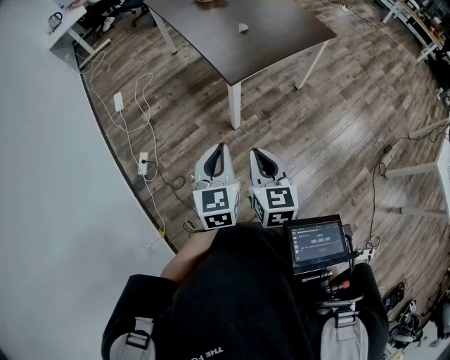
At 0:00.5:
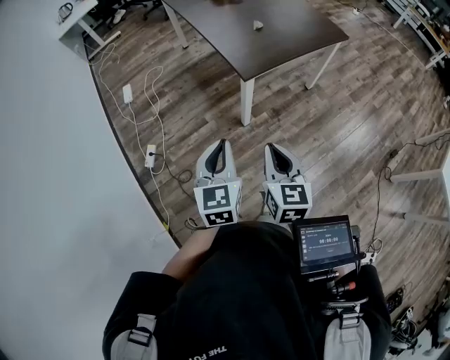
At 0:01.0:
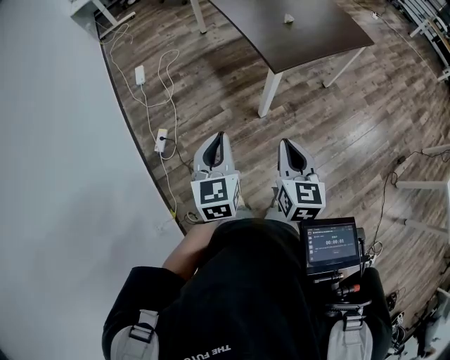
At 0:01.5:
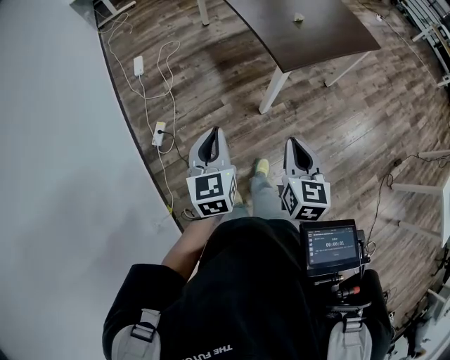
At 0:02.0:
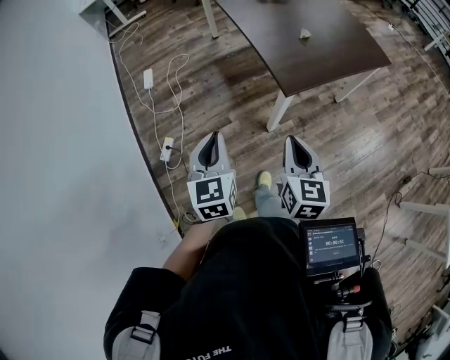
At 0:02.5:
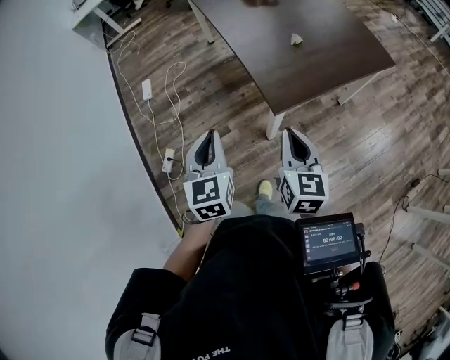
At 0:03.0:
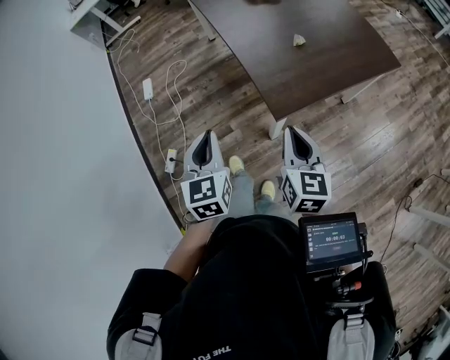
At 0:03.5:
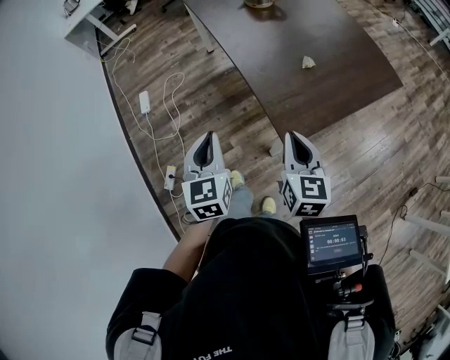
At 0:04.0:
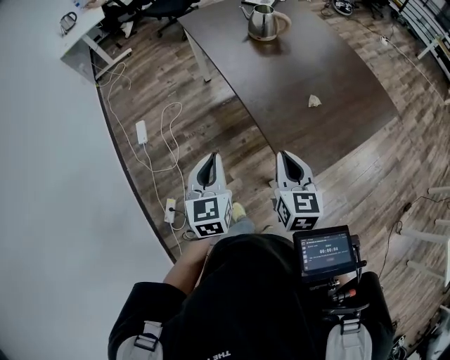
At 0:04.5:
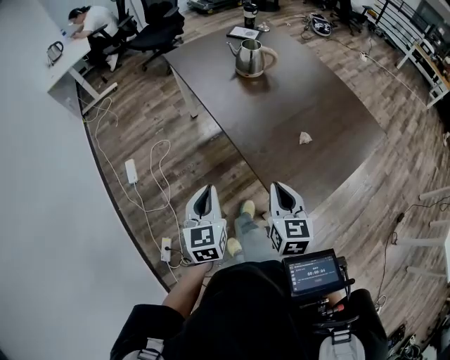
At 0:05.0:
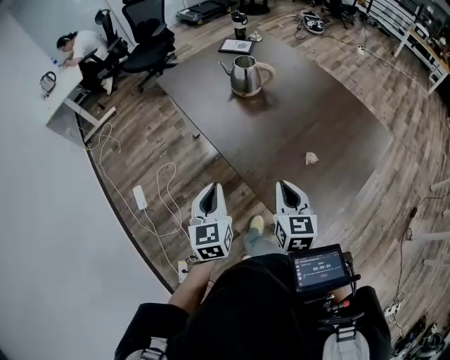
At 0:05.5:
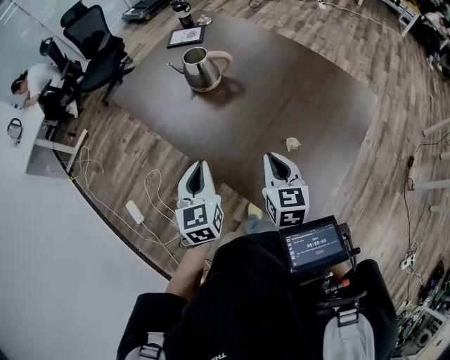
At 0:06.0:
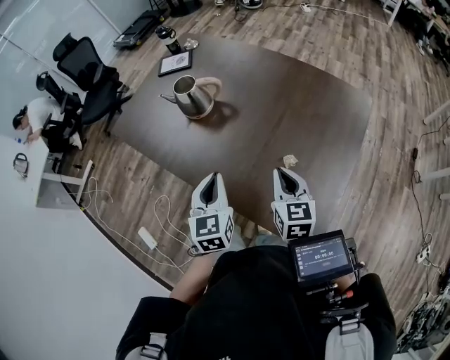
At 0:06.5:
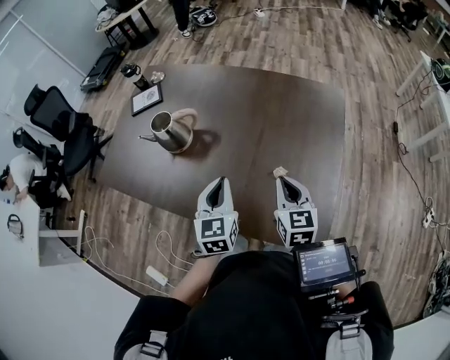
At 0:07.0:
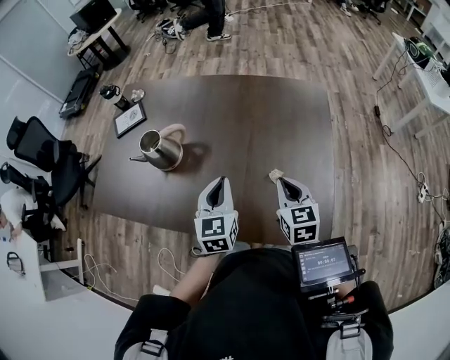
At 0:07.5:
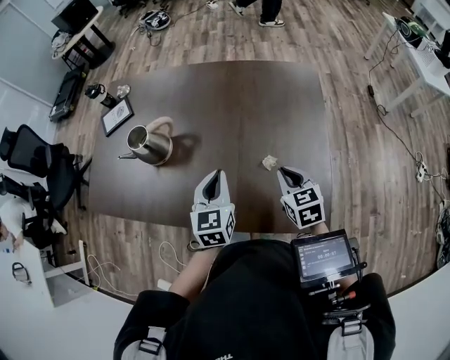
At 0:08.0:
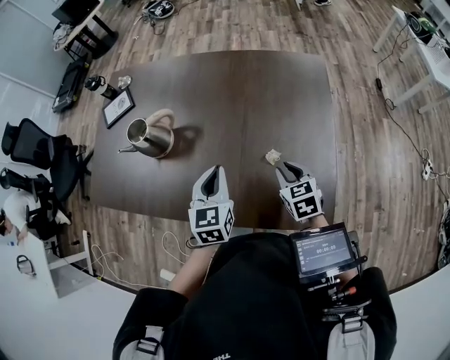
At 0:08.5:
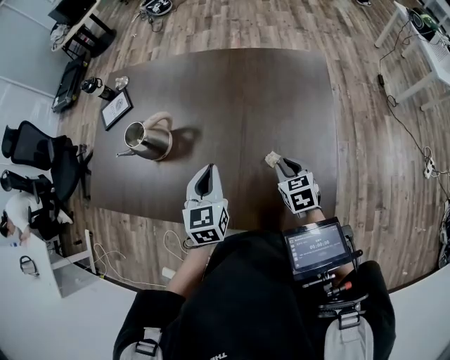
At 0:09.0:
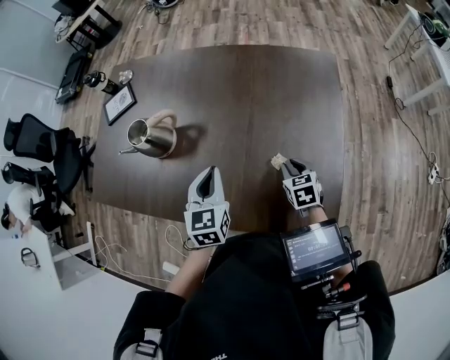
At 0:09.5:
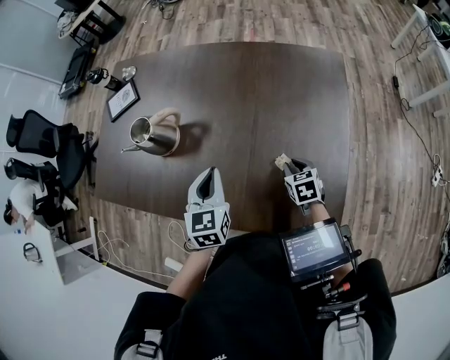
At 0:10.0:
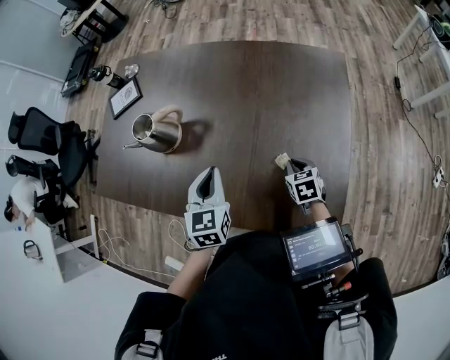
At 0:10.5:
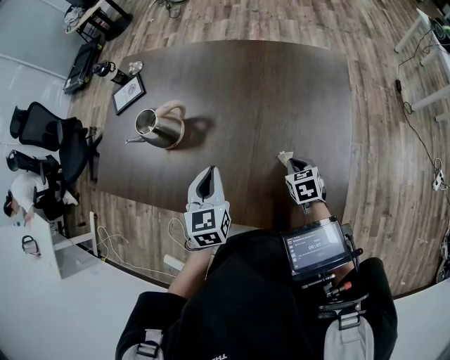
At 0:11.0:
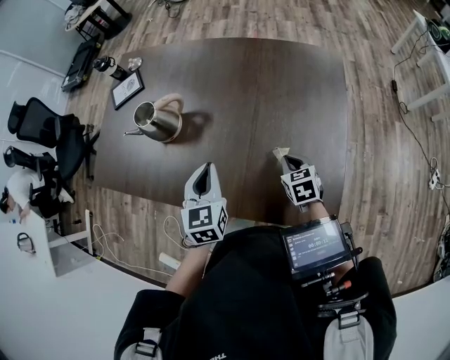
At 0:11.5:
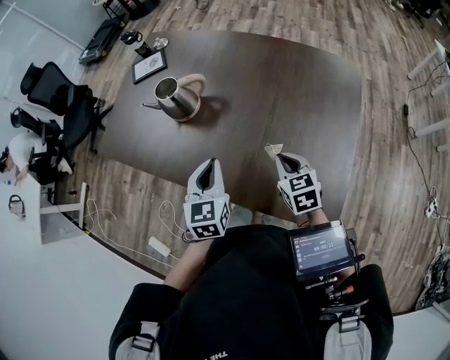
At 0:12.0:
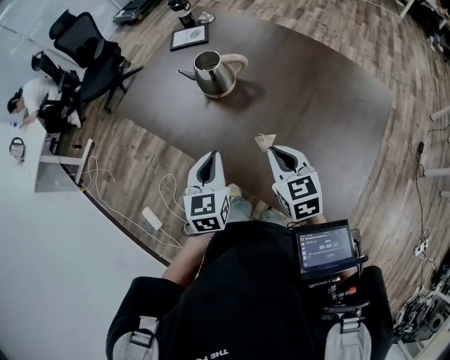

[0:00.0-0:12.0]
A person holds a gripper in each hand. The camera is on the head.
0:00.0 to 0:02.0: The left gripper is displaced to the left and forward by roughly 20 cm. The right gripper goes approximately 15 cm forward and to the left.
0:02.0 to 0:04.0: The grippers both shift forward by approximately 35 cm.
0:04.0 to 0:06.0: The left gripper shifts by approximately 35 cm, and turns by about 30 degrees. Meanwhile the right gripper ends up approximately 30 cm from where it was, and rotates approximately 30 degrees.
0:06.0 to 0:08.0: The left gripper shifts about 10 cm forward, and turns by about 30 degrees, while the right gripper travels downward and to the right by some 10 cm, changes its angle by some 20 degrees, and opens its fingers.
0:08.0 to 0:10.0: The right gripper is displaced downward by roughly 10 cm.
0:10.0 to 0:12.0: The left gripper moves to the left and backward, about 15 cm, and swivels roughly 20 degrees, while the right gripper heads to the left and upward, covering some 30 cm, and swivels approximately 40 degrees.

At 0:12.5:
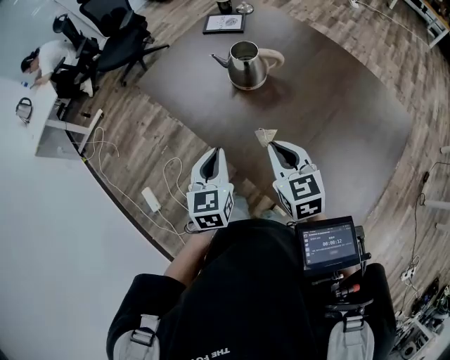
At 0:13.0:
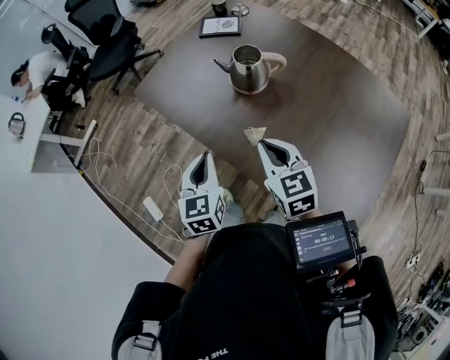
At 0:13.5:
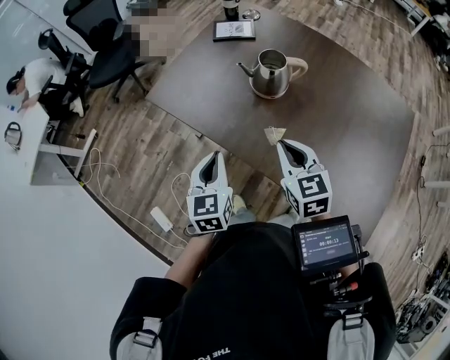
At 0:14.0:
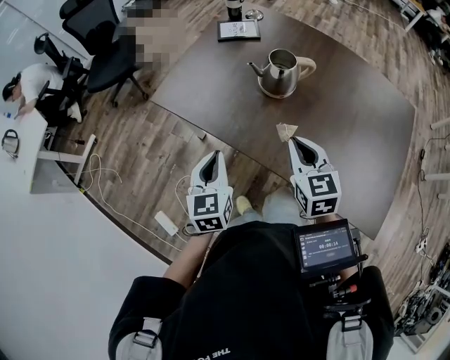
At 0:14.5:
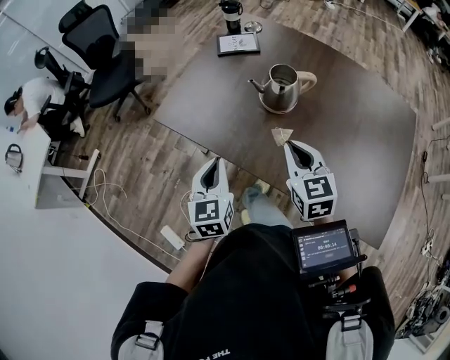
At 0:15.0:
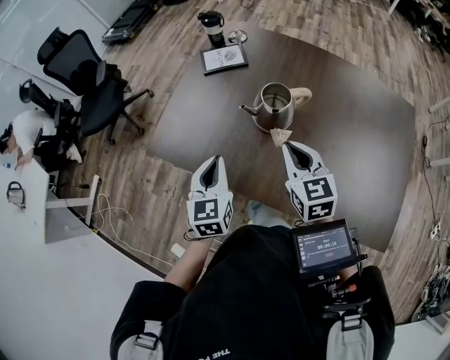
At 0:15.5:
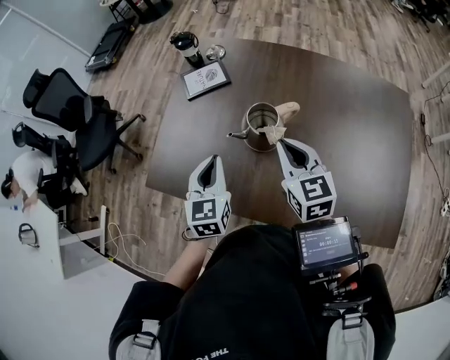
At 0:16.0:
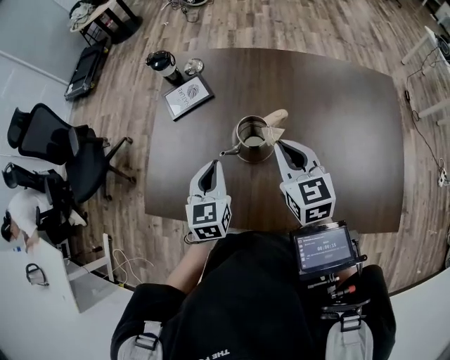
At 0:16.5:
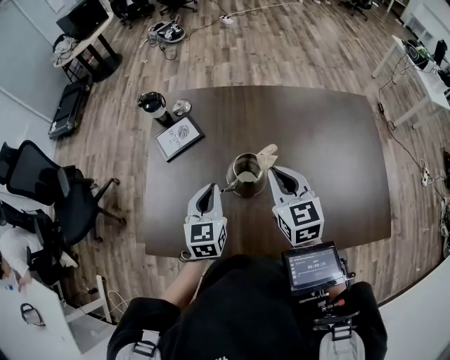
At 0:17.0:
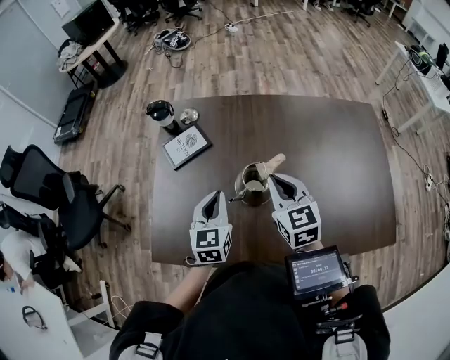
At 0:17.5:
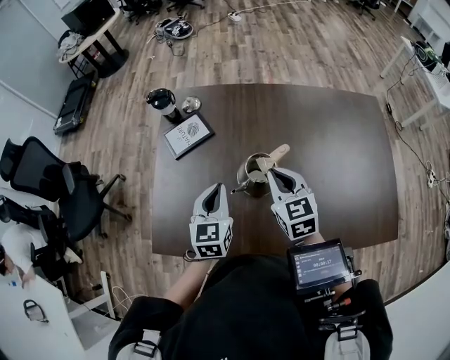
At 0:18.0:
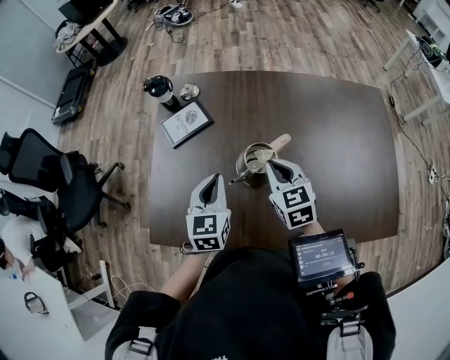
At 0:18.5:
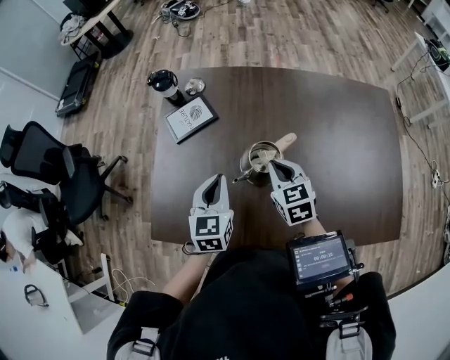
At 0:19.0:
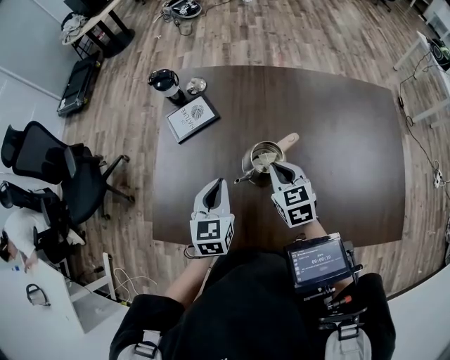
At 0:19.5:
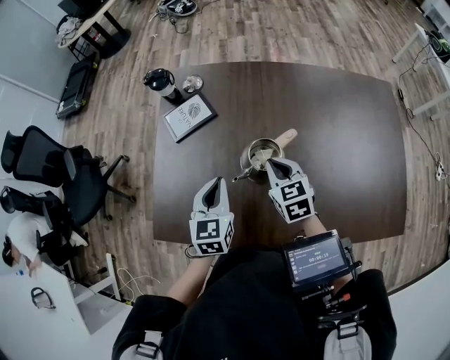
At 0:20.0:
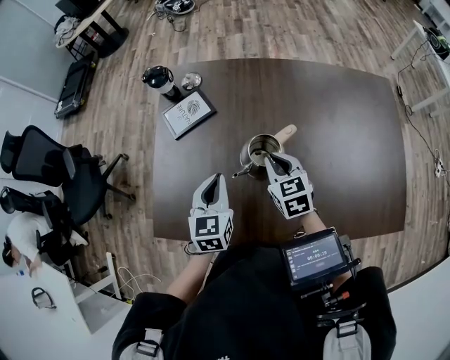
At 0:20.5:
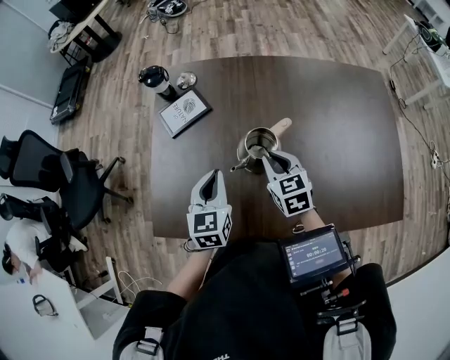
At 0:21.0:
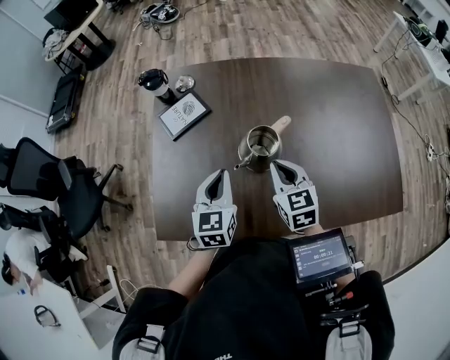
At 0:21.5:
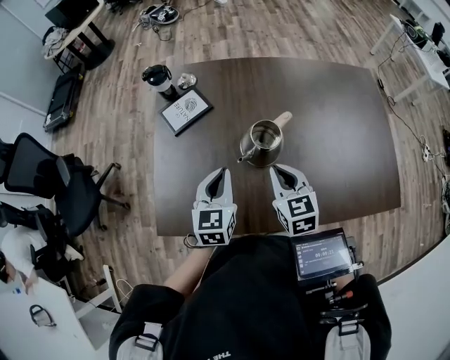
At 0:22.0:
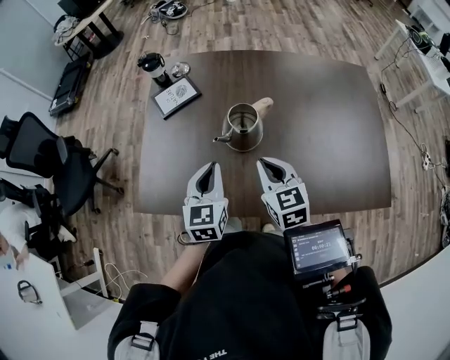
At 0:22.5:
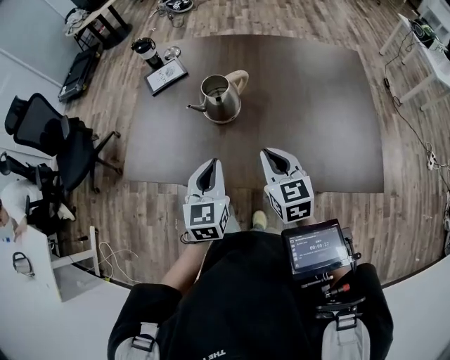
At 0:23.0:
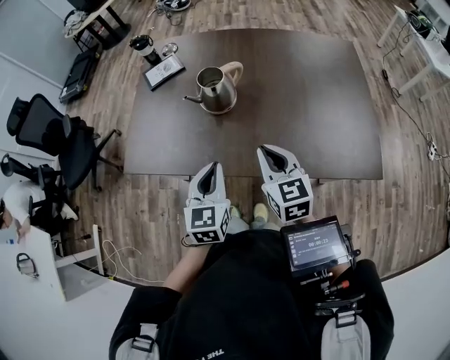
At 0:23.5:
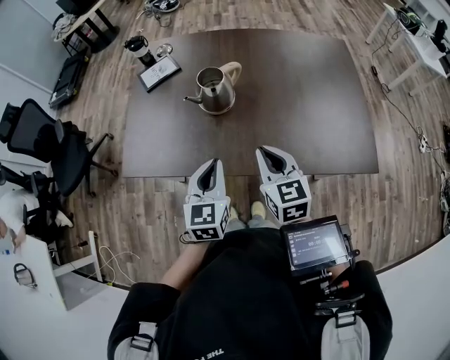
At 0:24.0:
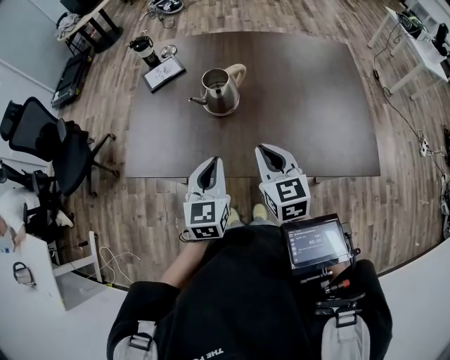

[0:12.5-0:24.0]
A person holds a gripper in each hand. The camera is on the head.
0:12.5 to 0:14.5: Both grippers move to the left and forward, about 20 cm.
0:14.5 to 0:16.5: The left gripper shifts by some 30 cm, and turns by roughly 30 degrees. The right gripper moves roughly 20 cm, and turns by approximately 30 degrees.
0:16.5 to 0:18.5: The right gripper moves downward, approximately 10 cm.
0:18.5 to 0:20.0: The grippers make only small movements.
0:20.0 to 0:22.0: Both grippers travel together backward, approximately 10 cm.
0:22.0 to 0:24.0: The grippers both shift backward and to the right by approximately 15 cm.

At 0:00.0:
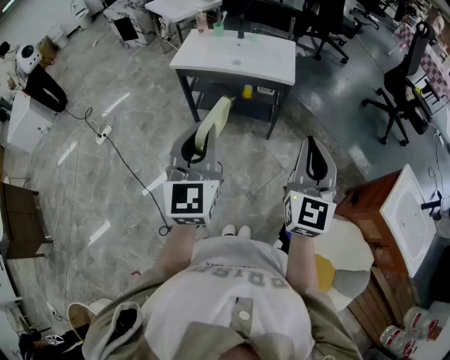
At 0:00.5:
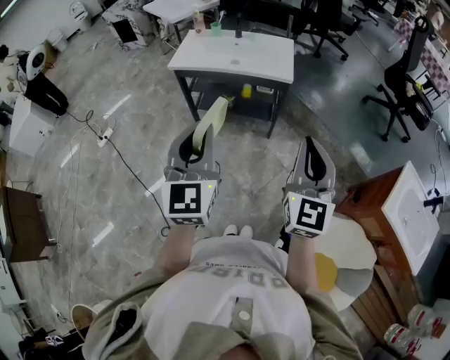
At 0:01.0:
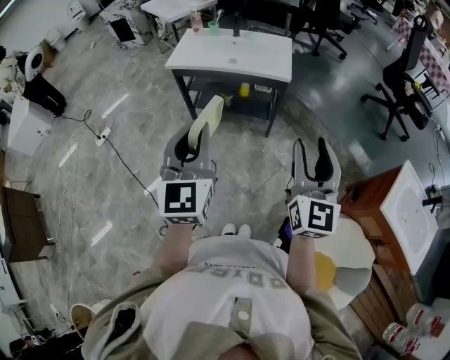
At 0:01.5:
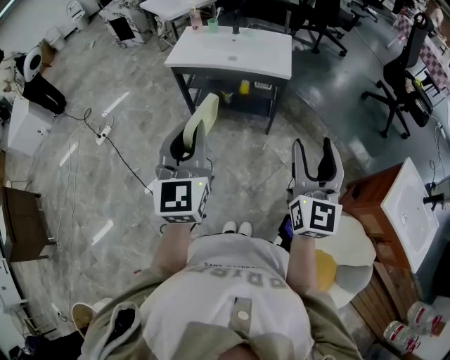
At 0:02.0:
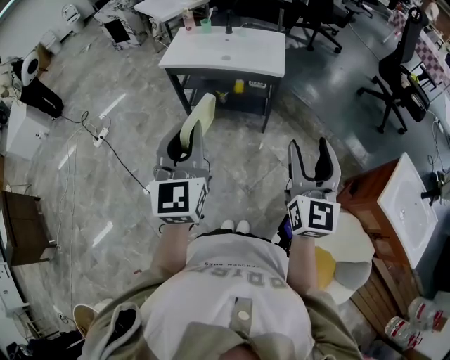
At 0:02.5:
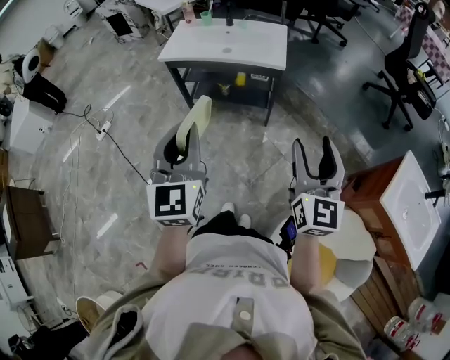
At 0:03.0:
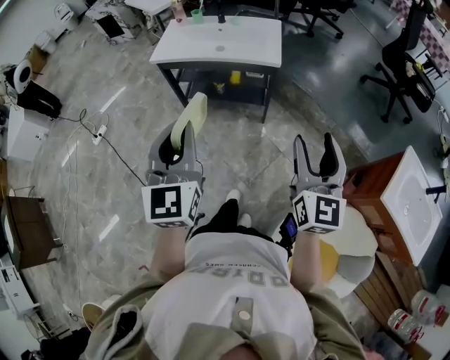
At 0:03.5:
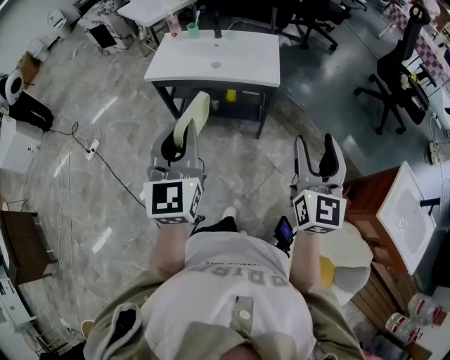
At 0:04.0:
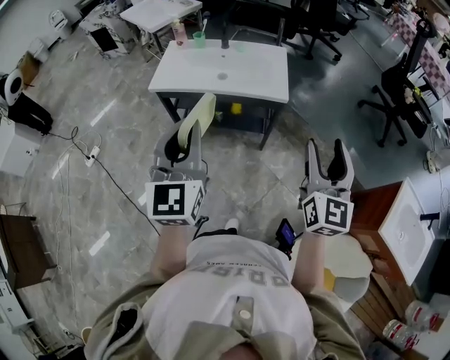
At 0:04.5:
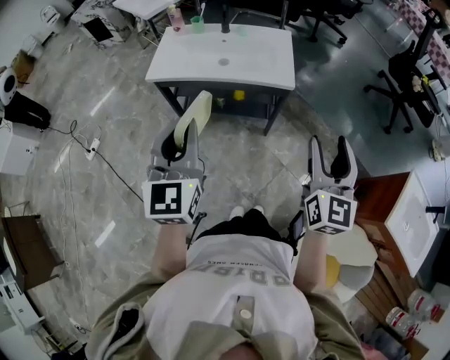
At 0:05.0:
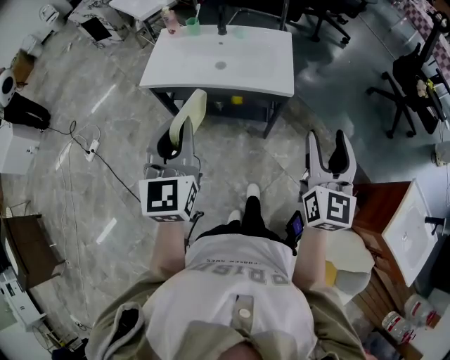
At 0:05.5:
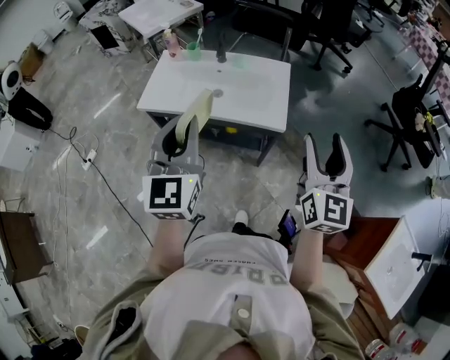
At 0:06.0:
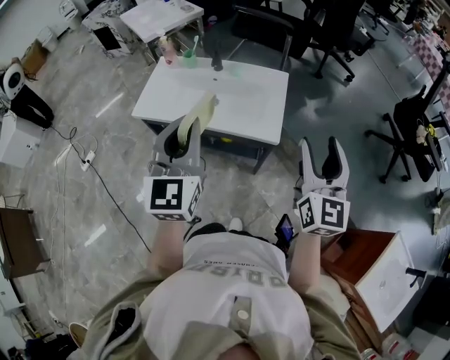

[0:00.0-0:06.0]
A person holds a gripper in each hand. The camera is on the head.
0:00.0 to 0:02.0: The right gripper opens.
0:02.0 to 0:04.0: Both grippers move forward, some 15 cm.
0:04.0 to 0:06.0: The grippers both shift forward by approximately 20 cm.
